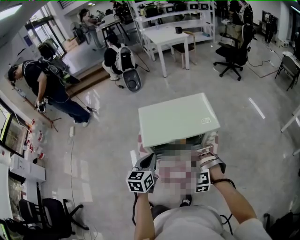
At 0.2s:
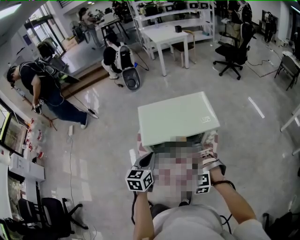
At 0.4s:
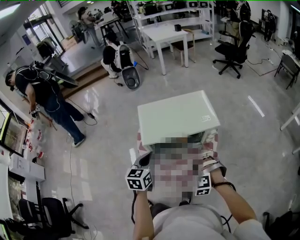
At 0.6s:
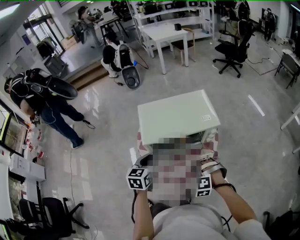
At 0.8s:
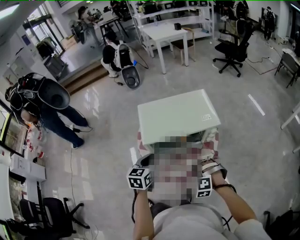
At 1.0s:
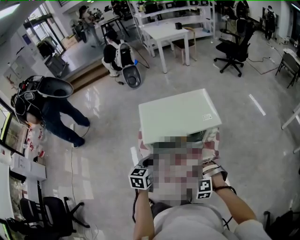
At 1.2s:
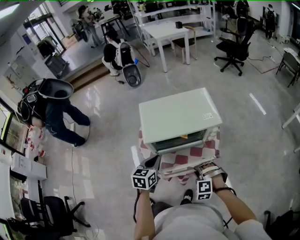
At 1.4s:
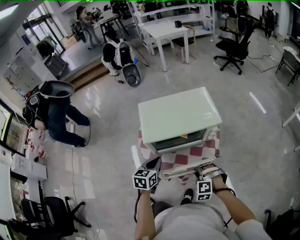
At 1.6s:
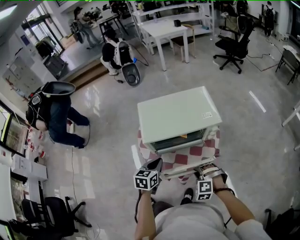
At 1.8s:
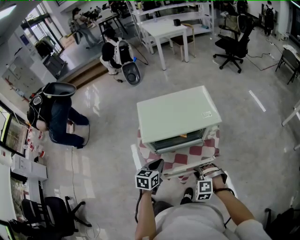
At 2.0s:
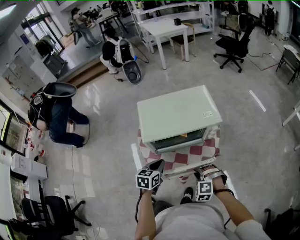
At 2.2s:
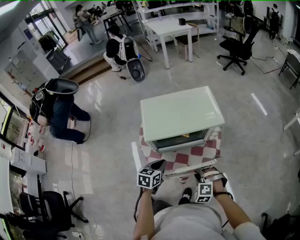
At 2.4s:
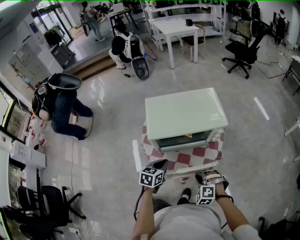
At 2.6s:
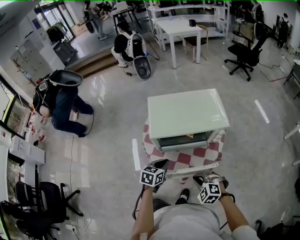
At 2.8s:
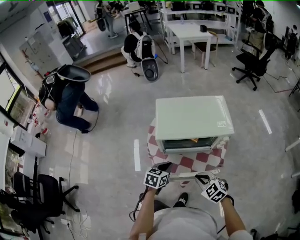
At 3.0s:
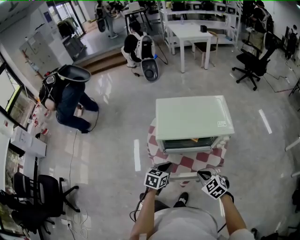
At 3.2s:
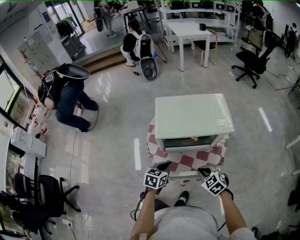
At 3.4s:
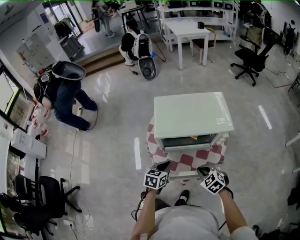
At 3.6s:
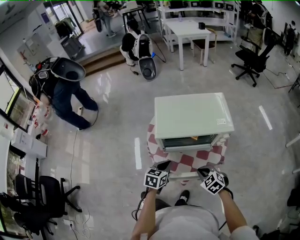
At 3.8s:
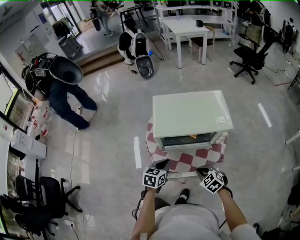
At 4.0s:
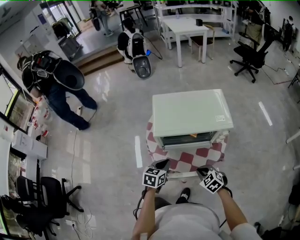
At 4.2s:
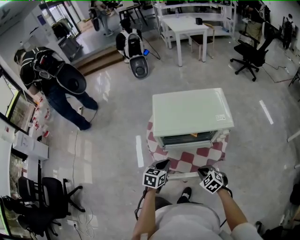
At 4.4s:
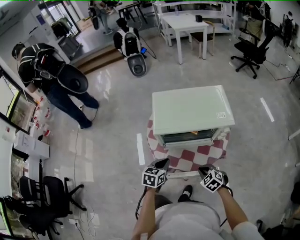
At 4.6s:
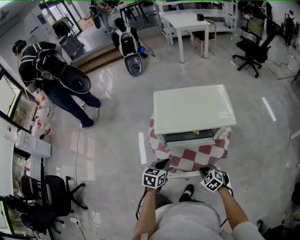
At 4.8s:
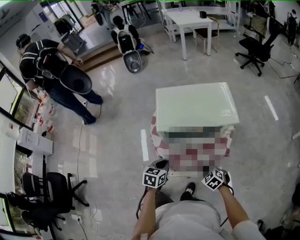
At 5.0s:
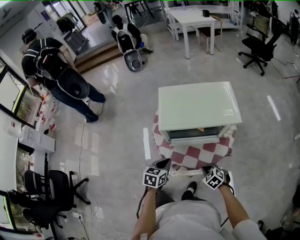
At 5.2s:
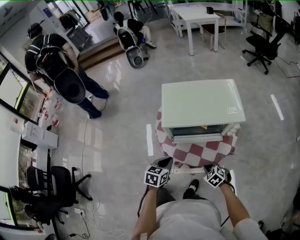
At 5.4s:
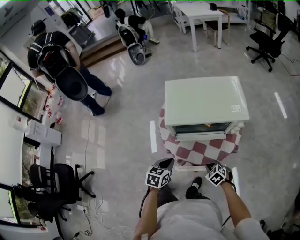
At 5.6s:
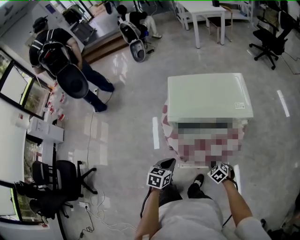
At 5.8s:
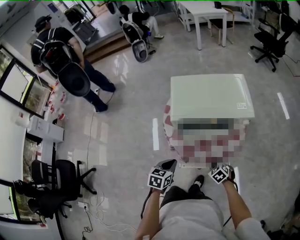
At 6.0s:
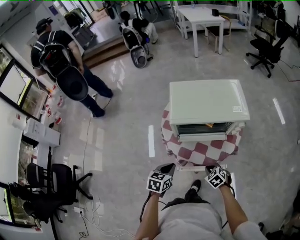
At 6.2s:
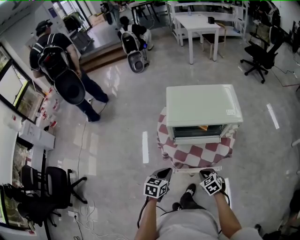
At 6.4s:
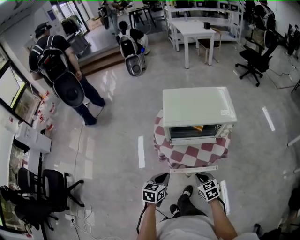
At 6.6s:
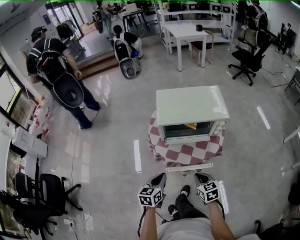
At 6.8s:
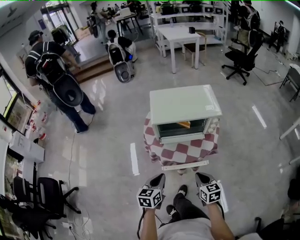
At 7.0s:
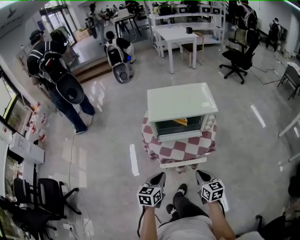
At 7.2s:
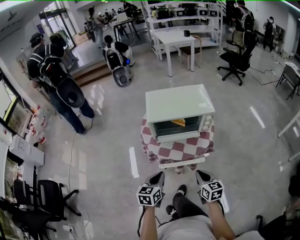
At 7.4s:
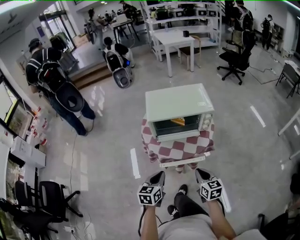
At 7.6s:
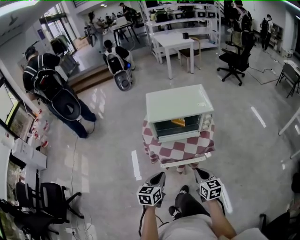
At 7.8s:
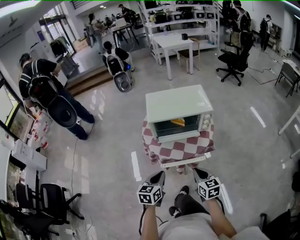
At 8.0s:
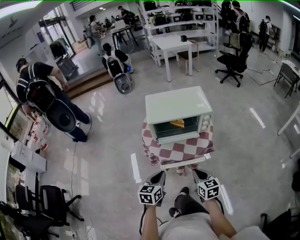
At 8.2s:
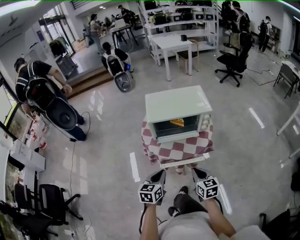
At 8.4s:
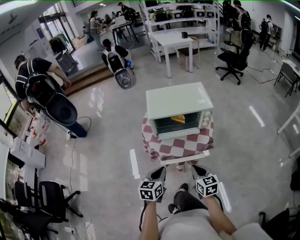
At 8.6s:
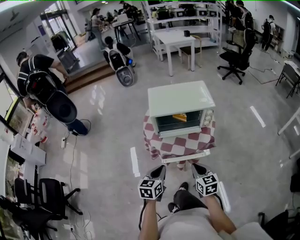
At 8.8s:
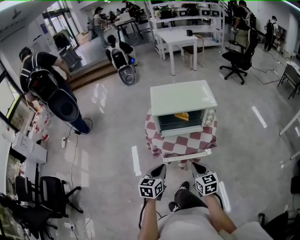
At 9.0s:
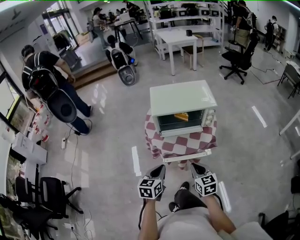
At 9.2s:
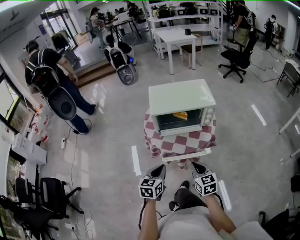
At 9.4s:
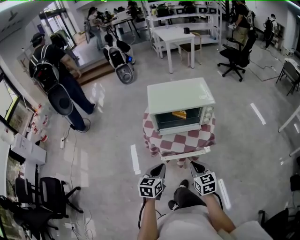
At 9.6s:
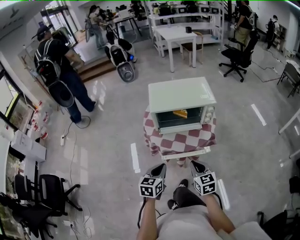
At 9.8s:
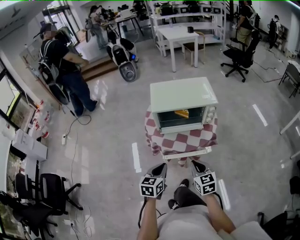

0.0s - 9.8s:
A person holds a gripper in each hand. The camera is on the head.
0.0s - 1.4s: The right gripper goes approximately 10 cm backward and downward, while the left gripper shifts some 10 cm downward.
1.4s - 2.8s: The right gripper shifts about 5 cm upward, and rotates some 50 degrees. Meanwhile the left gripper moves downward, about 5 cm.
2.8s - 4.2s: The right gripper travels downward by approximately 5 cm.
4.2s - 5.6s: The right gripper moves downward, roughly 10 cm, while the left gripper heads backward, covering about 5 cm.
5.6s - 7.0s: The right gripper heads upward and backward, covering roughly 20 cm, and angles its fingers upward, by roughly 30 degrees. Meanwhile the left gripper moves backward and upward, about 15 cm.
7.0s - 9.8s: The grippers move only a little.

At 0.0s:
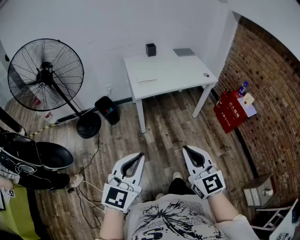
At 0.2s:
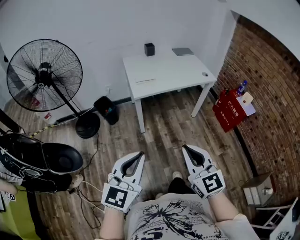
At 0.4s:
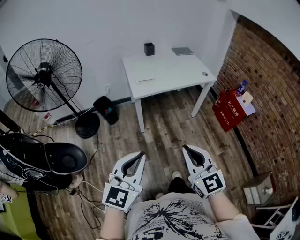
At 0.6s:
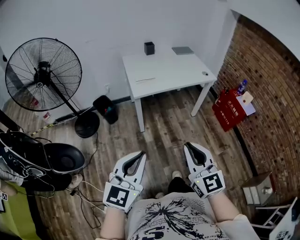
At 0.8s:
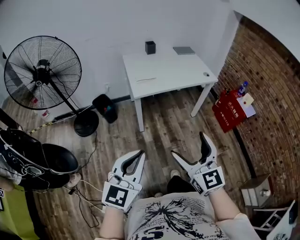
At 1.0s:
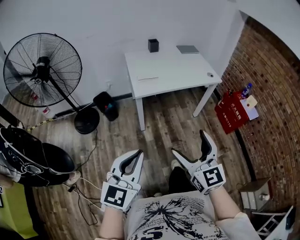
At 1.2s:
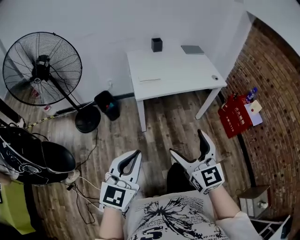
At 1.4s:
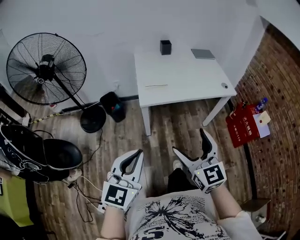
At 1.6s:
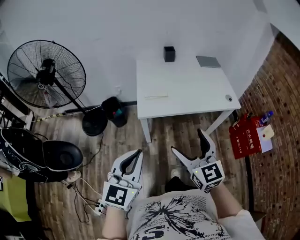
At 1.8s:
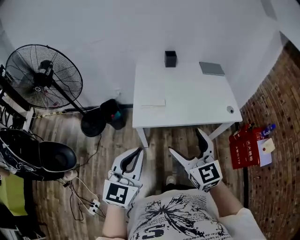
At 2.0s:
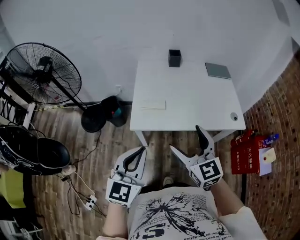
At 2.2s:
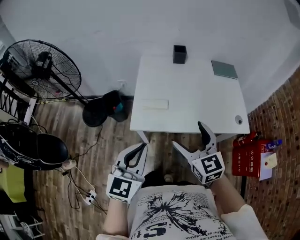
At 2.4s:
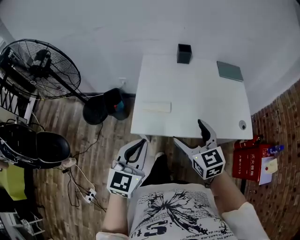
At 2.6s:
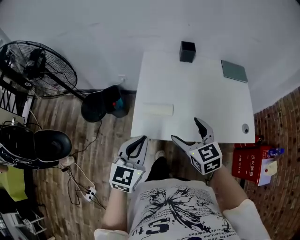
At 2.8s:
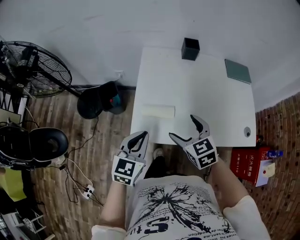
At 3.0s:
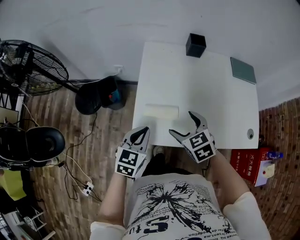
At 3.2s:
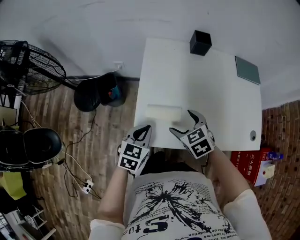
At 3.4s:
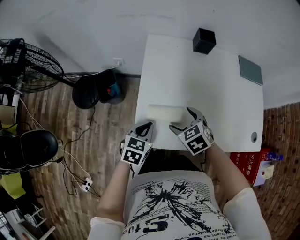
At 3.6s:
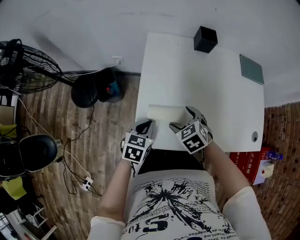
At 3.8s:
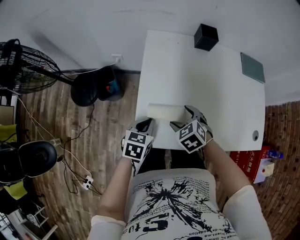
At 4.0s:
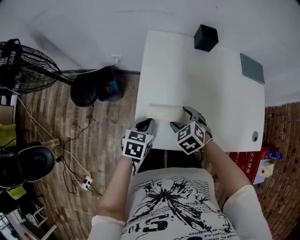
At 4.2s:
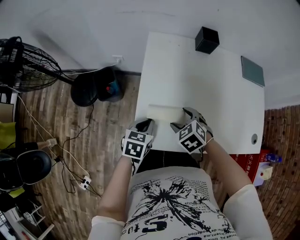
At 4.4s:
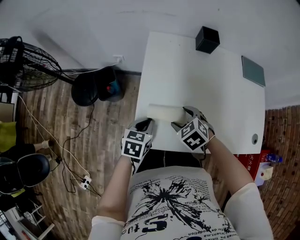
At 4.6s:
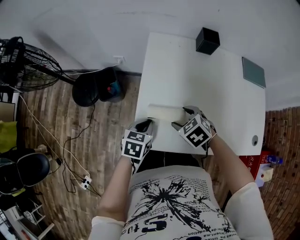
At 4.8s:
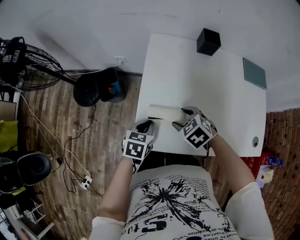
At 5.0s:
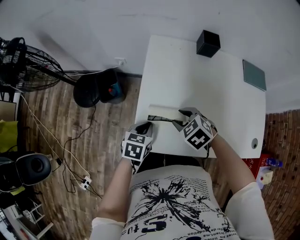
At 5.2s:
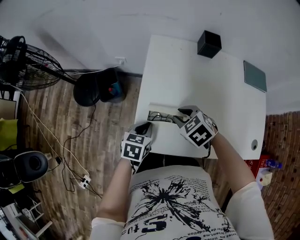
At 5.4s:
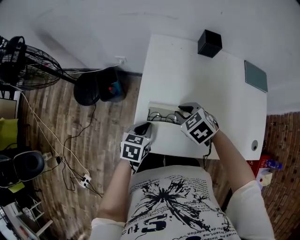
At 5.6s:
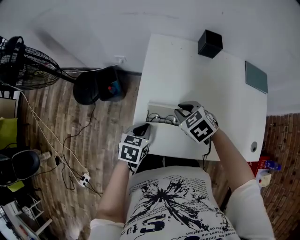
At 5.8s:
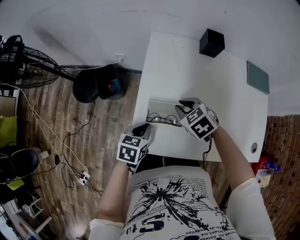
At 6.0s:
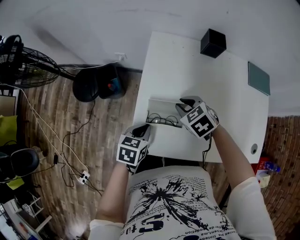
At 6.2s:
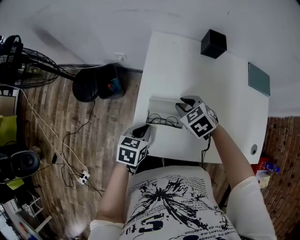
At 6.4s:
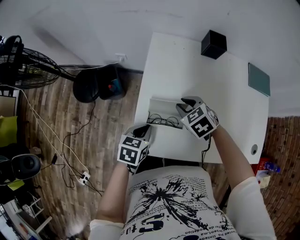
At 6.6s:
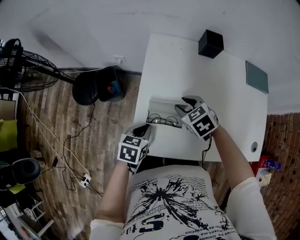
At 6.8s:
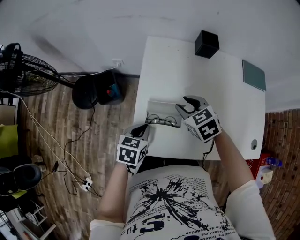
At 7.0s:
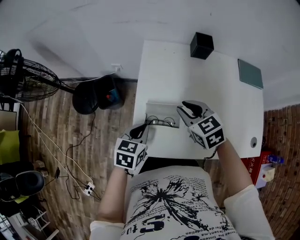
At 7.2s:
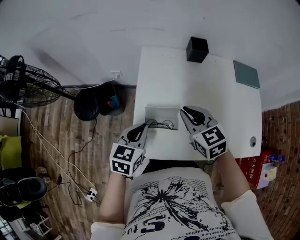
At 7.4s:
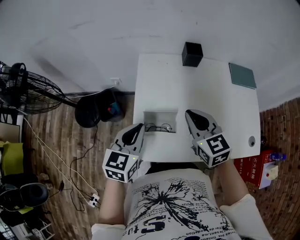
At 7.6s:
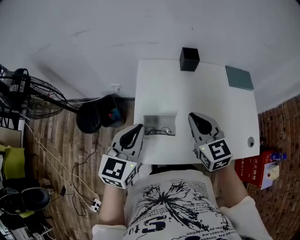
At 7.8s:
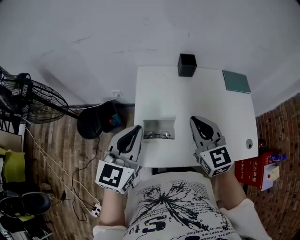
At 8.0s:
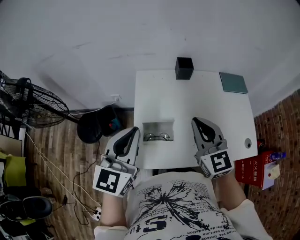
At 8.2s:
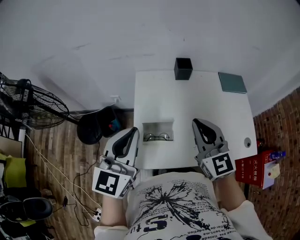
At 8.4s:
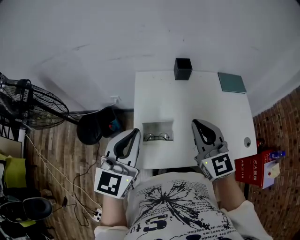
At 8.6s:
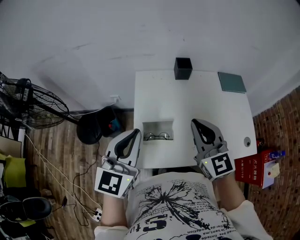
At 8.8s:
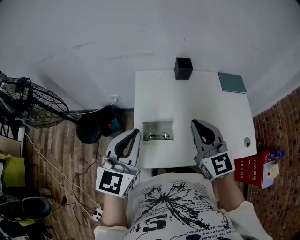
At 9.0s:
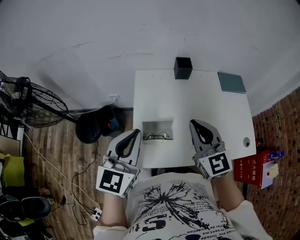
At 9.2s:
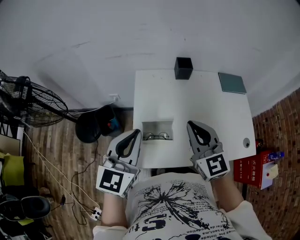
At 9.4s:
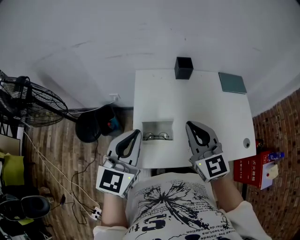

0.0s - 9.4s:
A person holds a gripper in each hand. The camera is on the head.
0.0s - 1.6s: Both grippers move forward, about 30 cm. The right gripper opens its fingers.
1.6s - 3.2s: Both grippers are carried forward, approximately 50 cm. Both grippers move downward, roughly 25 cm. The right gripper tilts its fingers roughly 40 degrees downward, while the left gripper angles its fingers downward, by approximately 30 degrees.
3.2s - 4.8s: The left gripper goes about 5 cm downward. The right gripper changes place by some 5 cm.
4.8s - 6.2s: The right gripper heads forward, covering some 10 cm.
6.2s - 7.8s: Both grippers move upward, about 25 cm. The right gripper tilts its fingers some 40 degrees upward. The left gripper points its fingers about 40 degrees further upward.
7.8s - 9.4s: There are only small adjustments of the grippers.

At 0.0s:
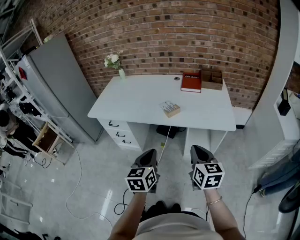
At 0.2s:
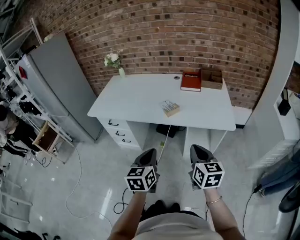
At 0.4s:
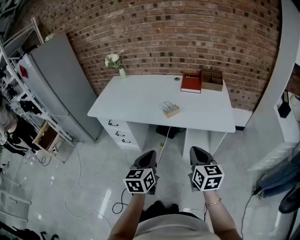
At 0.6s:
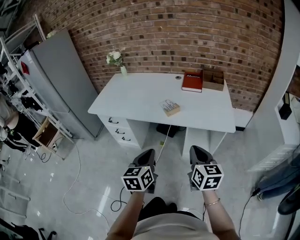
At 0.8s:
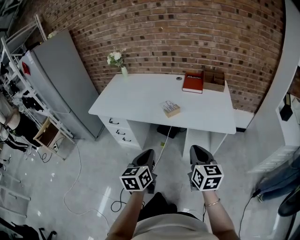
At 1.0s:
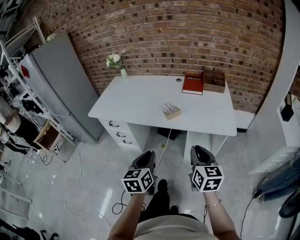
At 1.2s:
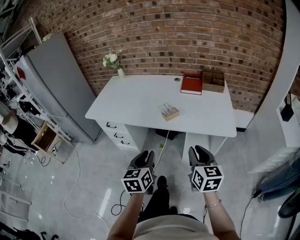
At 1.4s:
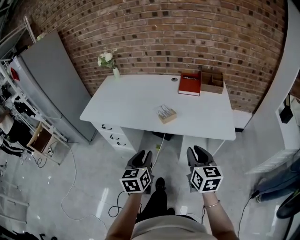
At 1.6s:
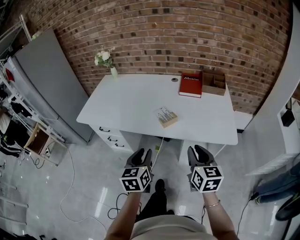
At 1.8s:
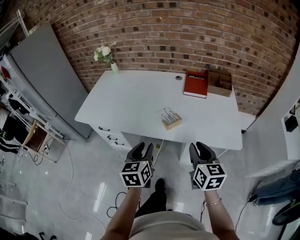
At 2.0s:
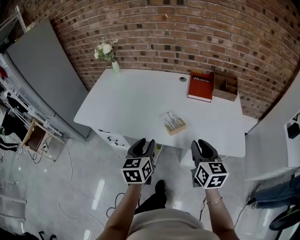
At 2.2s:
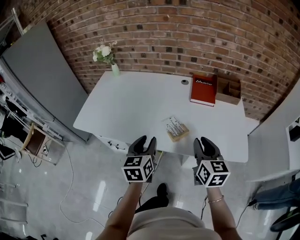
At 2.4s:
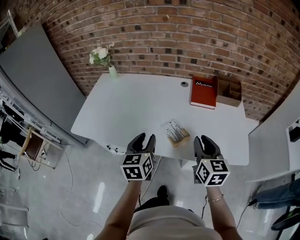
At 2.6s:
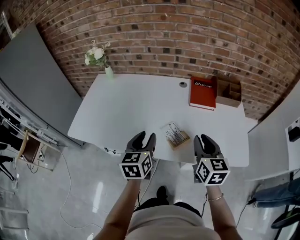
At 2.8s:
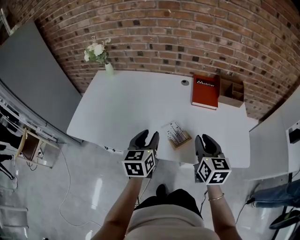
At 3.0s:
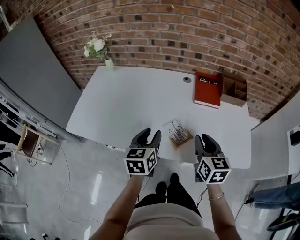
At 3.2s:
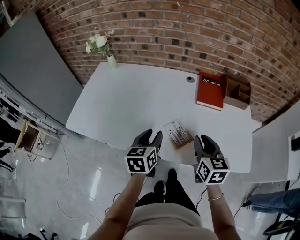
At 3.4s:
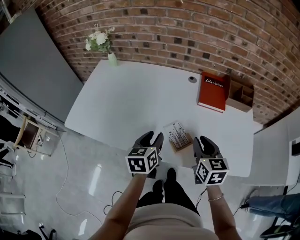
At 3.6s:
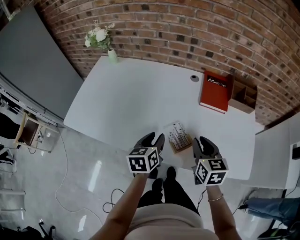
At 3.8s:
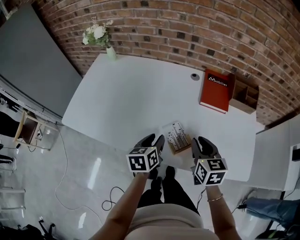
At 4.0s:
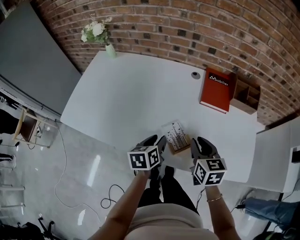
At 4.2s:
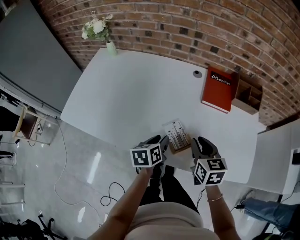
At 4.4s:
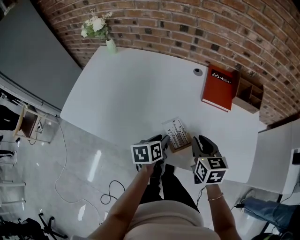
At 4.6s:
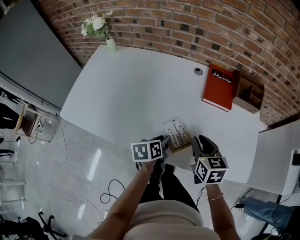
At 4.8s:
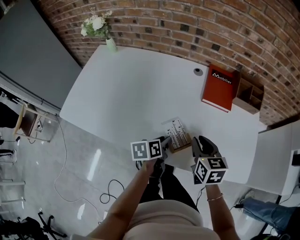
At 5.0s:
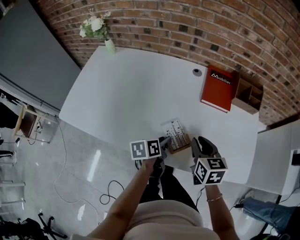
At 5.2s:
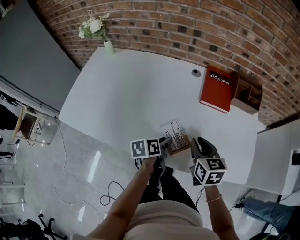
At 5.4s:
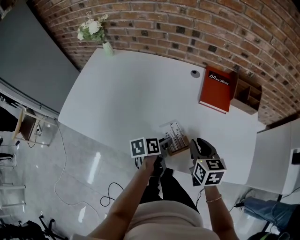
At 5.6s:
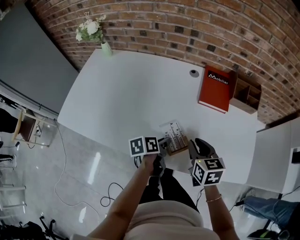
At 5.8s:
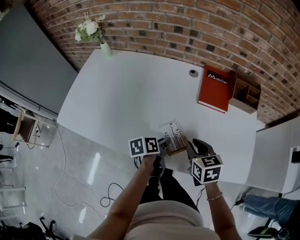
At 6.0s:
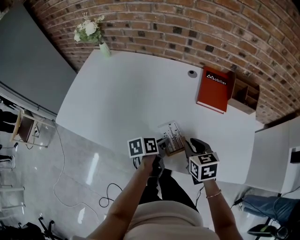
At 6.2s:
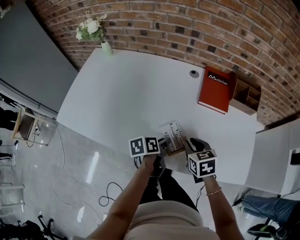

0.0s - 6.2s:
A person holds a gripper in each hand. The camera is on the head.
0.0s - 1.6s: Both grippers move forward, approximately 10 cm. The left gripper opens up.
1.6s - 3.2s: The grippers both shift forward by about 25 cm.
3.2s - 4.6s: The left gripper shifts approximately 15 cm downward and to the right, and turns by roughly 30 degrees; the right gripper goes roughly 5 cm downward.
4.6s - 6.2s: The right gripper shifts by about 5 cm.
